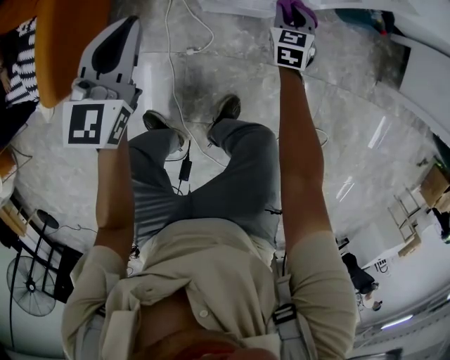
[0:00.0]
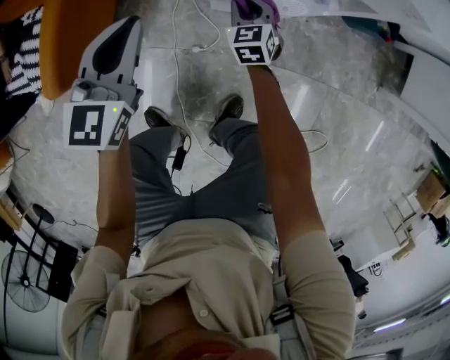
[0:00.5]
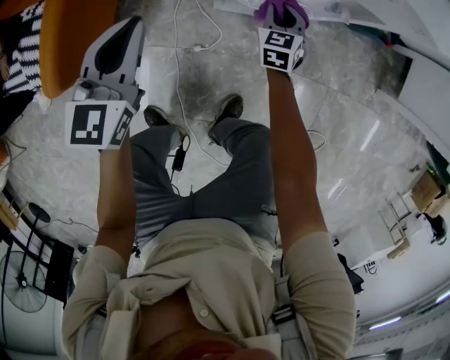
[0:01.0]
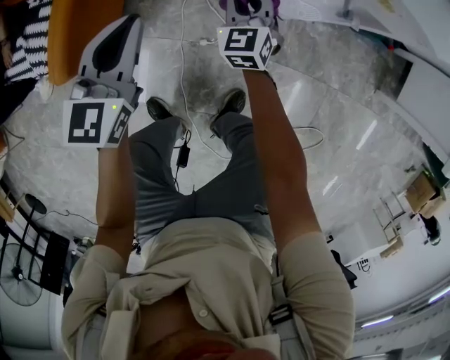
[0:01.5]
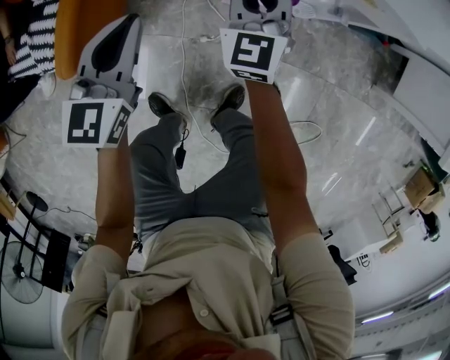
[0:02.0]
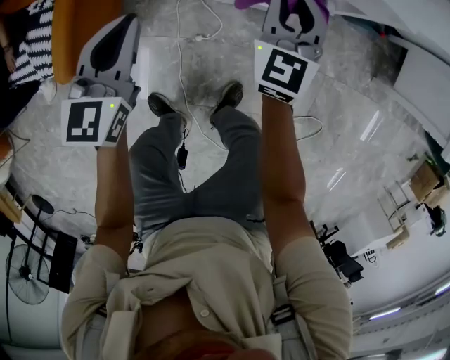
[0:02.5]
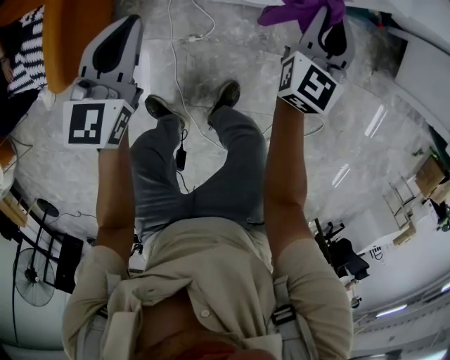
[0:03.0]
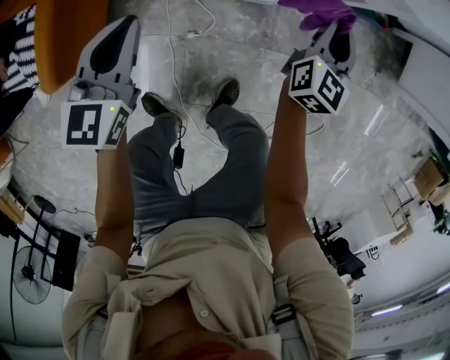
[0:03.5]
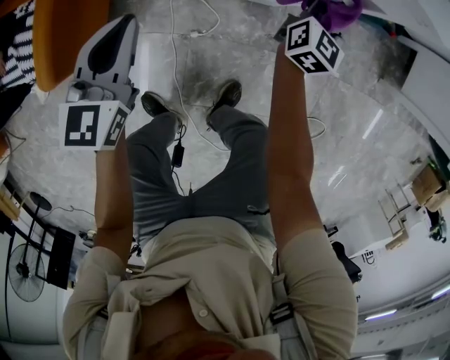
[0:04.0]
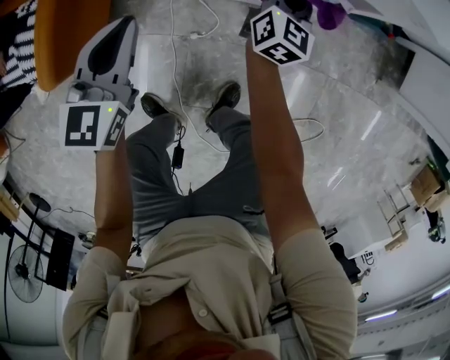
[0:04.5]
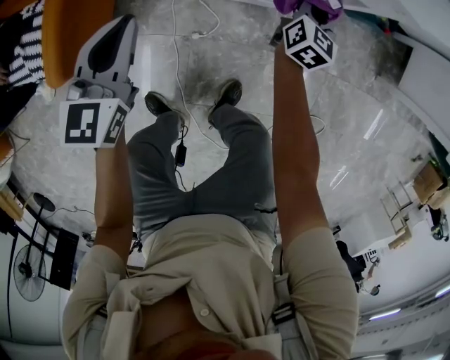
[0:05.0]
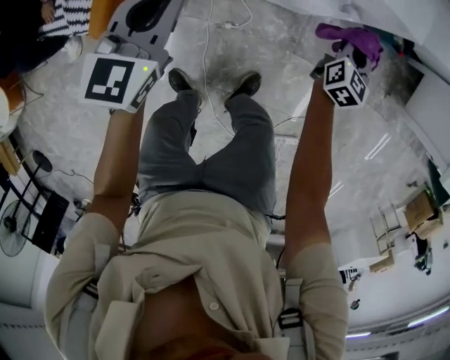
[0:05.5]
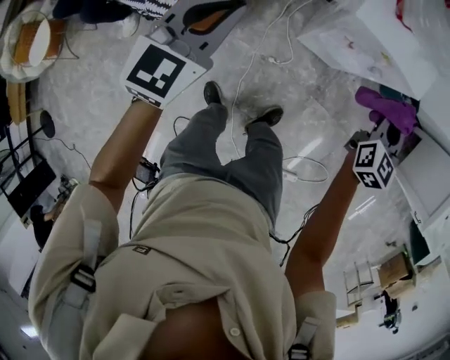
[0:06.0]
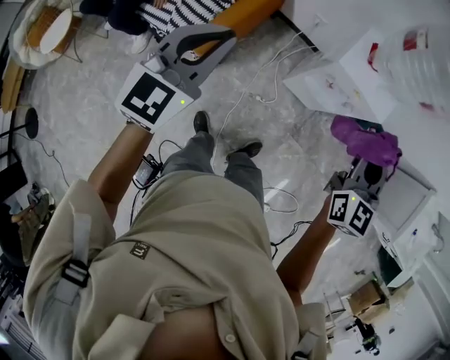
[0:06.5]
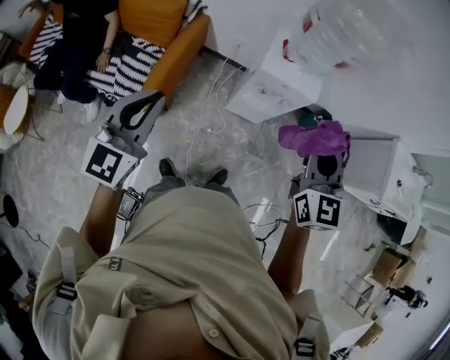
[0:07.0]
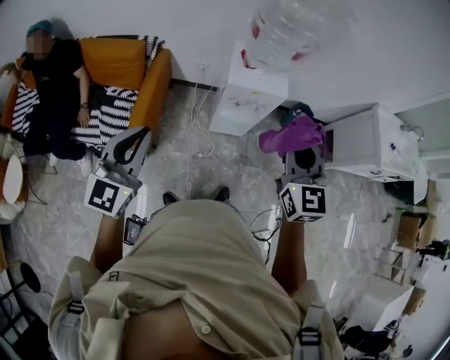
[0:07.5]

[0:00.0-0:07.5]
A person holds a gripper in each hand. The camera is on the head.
0:00.0 to 0:02.0: The left gripper goes about 10 cm to the left, while the right gripper goes left and right, some 25 cm each way, reversing 2 times, and changes its angle by some 30 degrees.
0:02.0 to 0:04.0: The left gripper heads downward and to the right, covering approximately 10 cm, while the right gripper goes roughly 25 cm to the right and downward, and rotates about 40 degrees.
0:04.0 to 0:05.5: The left gripper goes some 15 cm upward, while the right gripper shifts some 10 cm upward and backward, and travels to the left and back again, roughly 10 cm each way.
0:05.5 to 0:07.5: The two grippers go about 50 cm upward and backward. The right gripper rotates roughly 30 degrees.

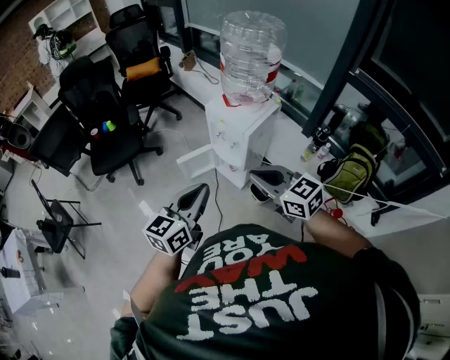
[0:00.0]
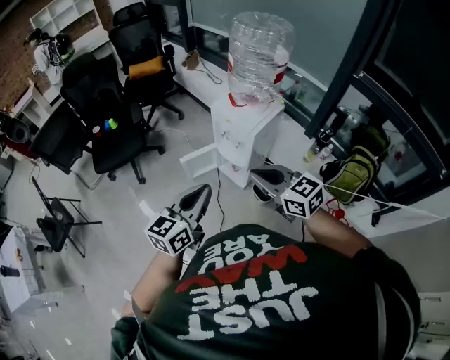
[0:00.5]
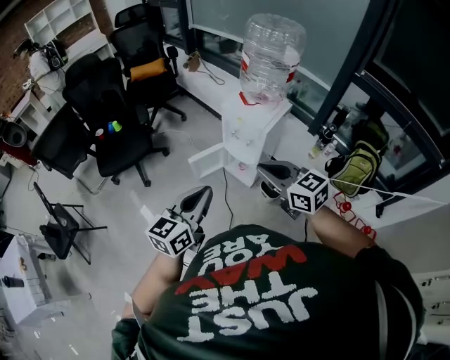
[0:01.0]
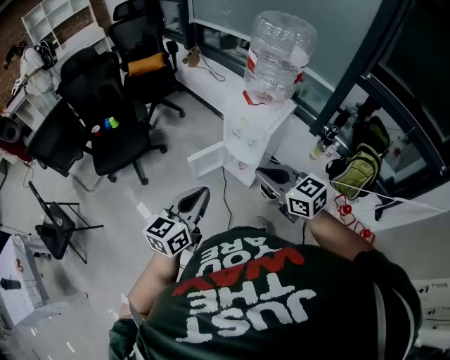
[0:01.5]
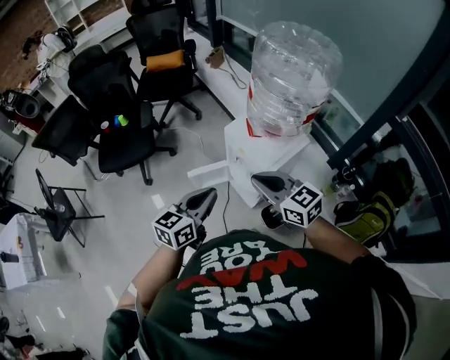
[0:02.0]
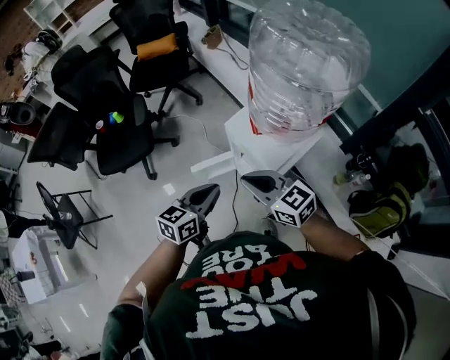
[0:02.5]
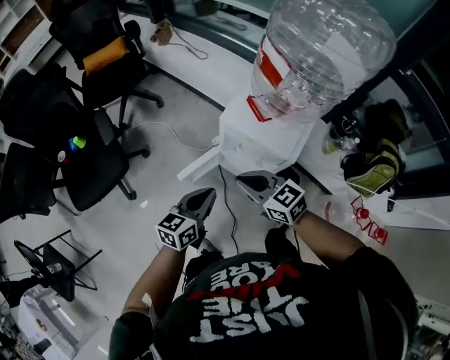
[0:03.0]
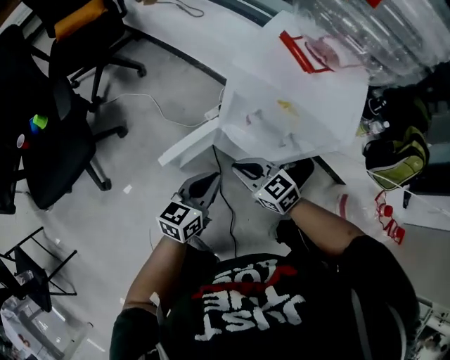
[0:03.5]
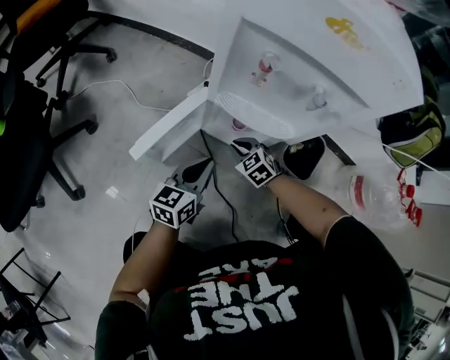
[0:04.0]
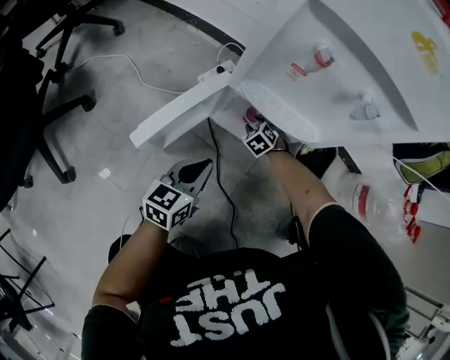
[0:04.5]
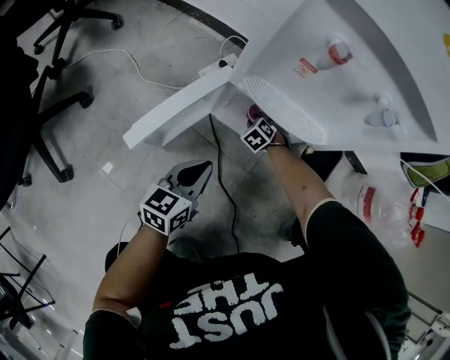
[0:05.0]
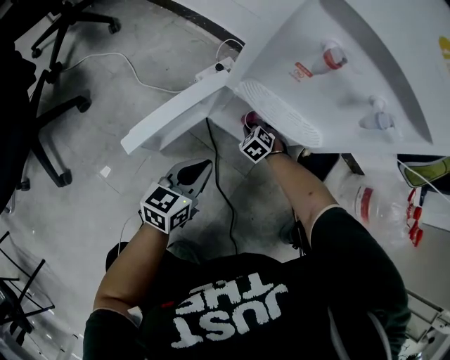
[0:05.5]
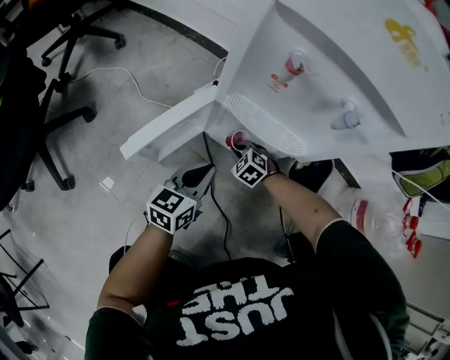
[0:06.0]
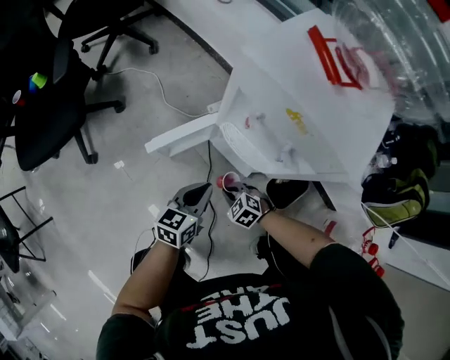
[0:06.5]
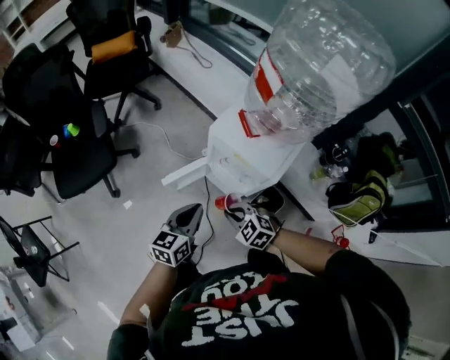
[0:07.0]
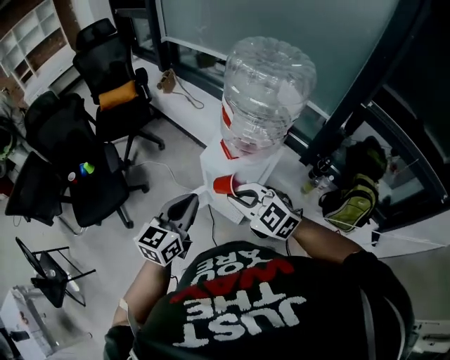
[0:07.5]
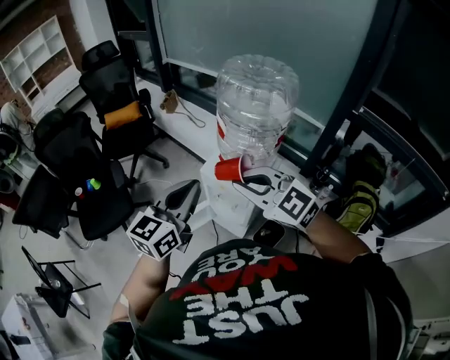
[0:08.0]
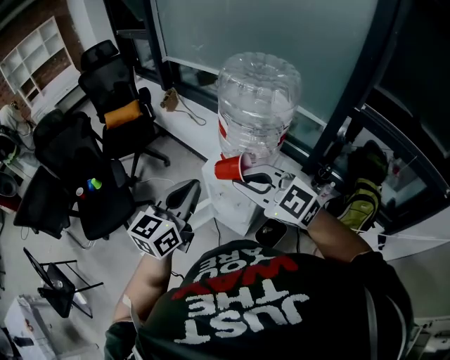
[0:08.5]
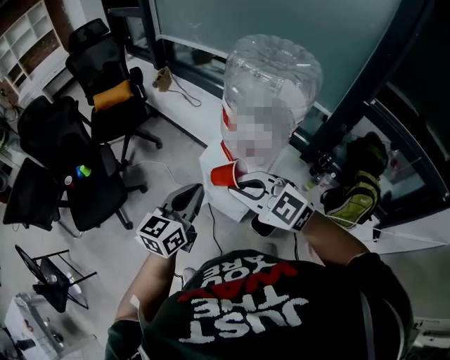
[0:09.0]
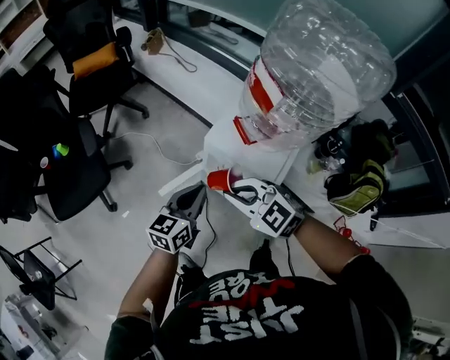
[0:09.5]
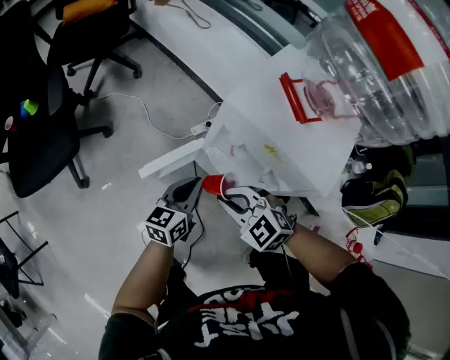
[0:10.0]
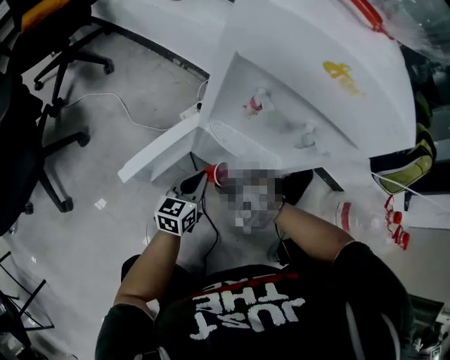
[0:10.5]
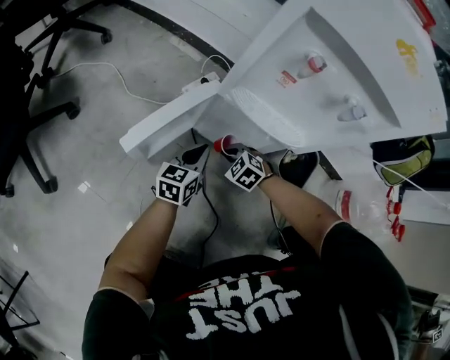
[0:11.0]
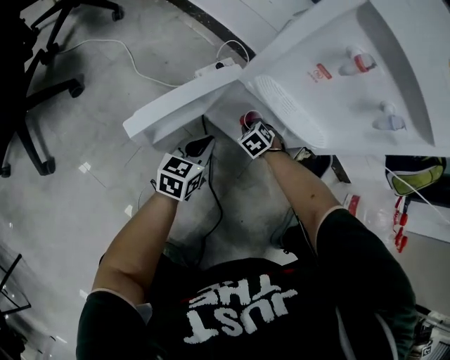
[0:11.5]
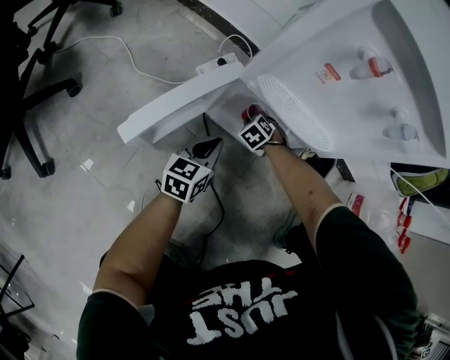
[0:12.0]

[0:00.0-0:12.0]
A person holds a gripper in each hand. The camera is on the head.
0:00.0 to 0:02.0: The grippers both shift forward by roughly 20 cm.
0:02.0 to 0:04.0: Both grippers move downward, about 70 cm. The right gripper tips its fingers downward by some 30 degrees; the left gripper turns by some 30 degrees.
0:04.0 to 0:06.0: The left gripper goes roughly 5 cm downward; the right gripper heads downward, covering roughly 10 cm, and opens, then closes once more.
0:06.0 to 0:08.0: The grippers both shift upward by some 90 cm. The left gripper changes its angle by some 30 degrees. The right gripper tips its fingers upward by approximately 40 degrees.
0:08.0 to 0:10.0: The two grippers go roughly 50 cm downward. The right gripper swivels some 30 degrees; the left gripper changes its angle by roughly 30 degrees.
0:10.0 to 0:12.0: The two grippers go some 40 cm downward. The right gripper rotates some 50 degrees.

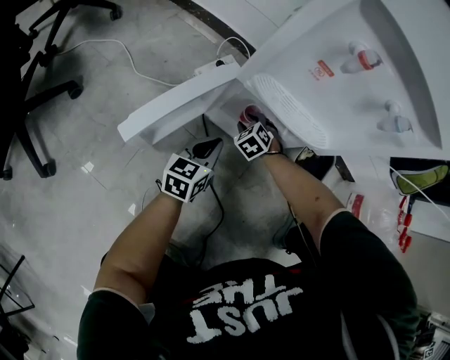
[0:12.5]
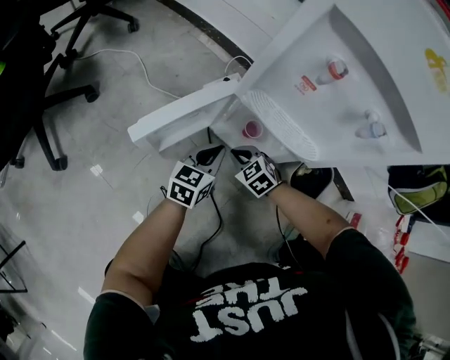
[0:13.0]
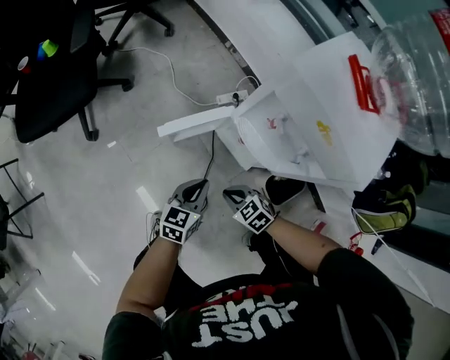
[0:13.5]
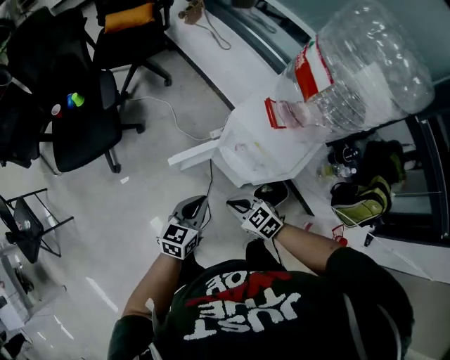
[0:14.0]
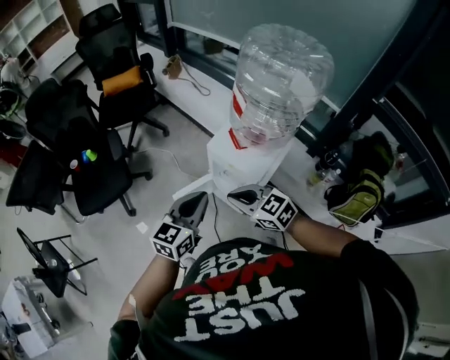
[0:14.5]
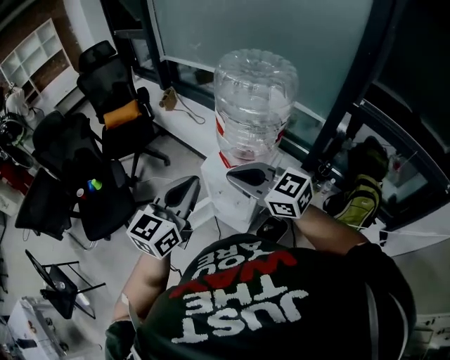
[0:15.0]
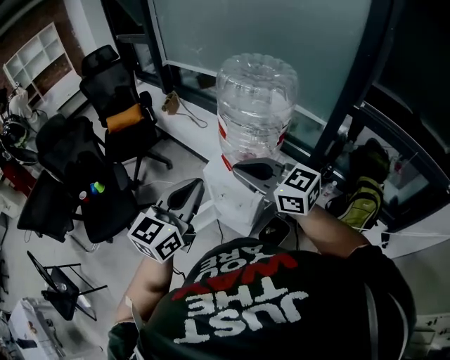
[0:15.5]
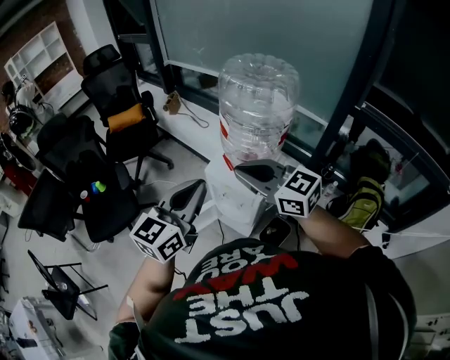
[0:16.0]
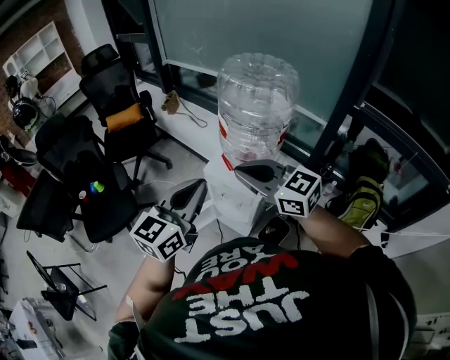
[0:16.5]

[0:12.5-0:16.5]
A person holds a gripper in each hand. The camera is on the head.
0:12.5 to 0:14.5: Both grippers travel together upward, approximately 80 cm. The right gripper tips its fingers upward by about 30 degrees, and closes up; the left gripper turns by roughly 20 degrees.
0:14.5 to 0:16.5: The grippers both shift upward by roughly 20 cm. The right gripper changes its angle by about 20 degrees.

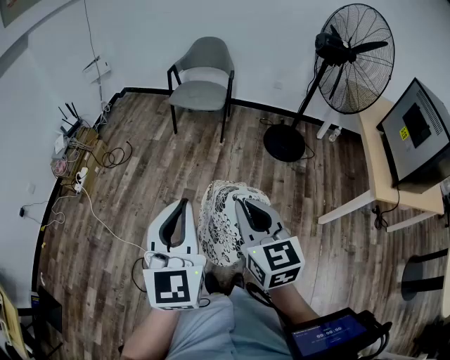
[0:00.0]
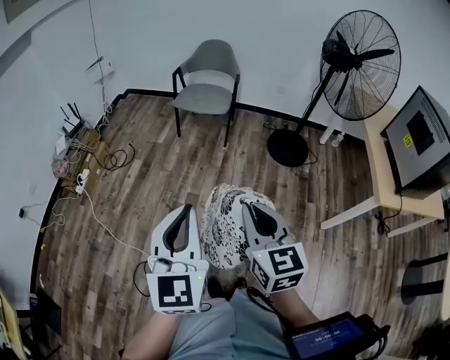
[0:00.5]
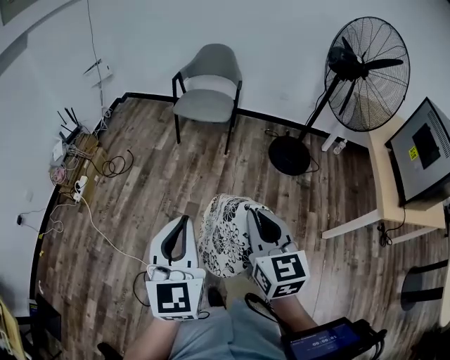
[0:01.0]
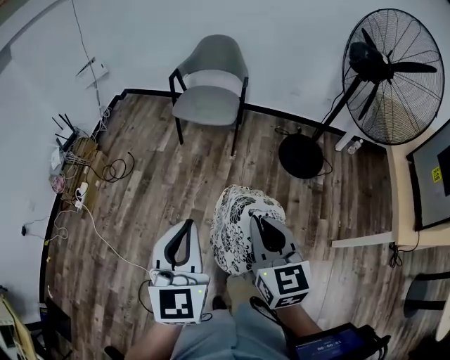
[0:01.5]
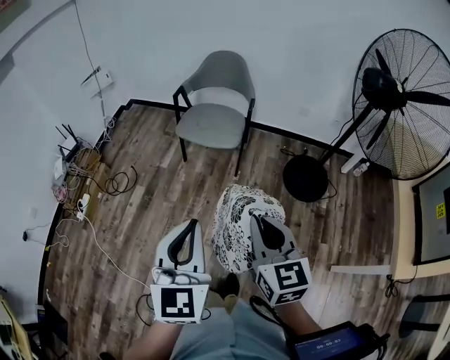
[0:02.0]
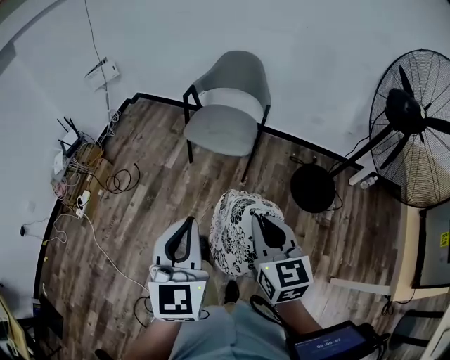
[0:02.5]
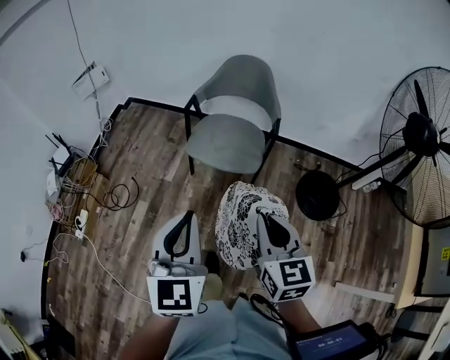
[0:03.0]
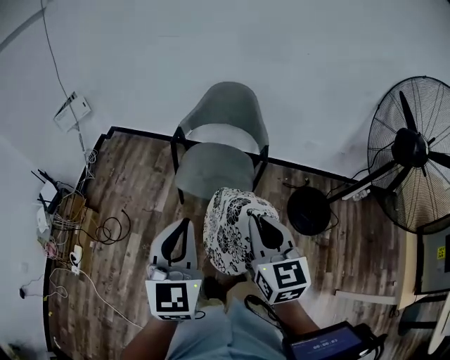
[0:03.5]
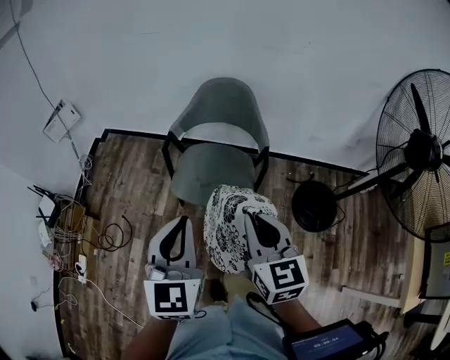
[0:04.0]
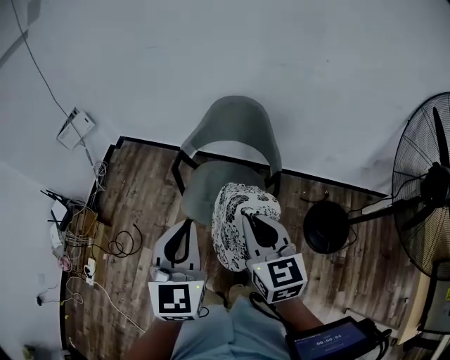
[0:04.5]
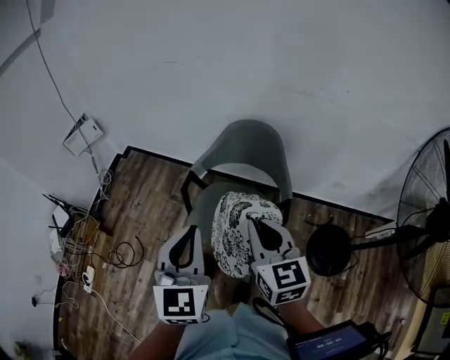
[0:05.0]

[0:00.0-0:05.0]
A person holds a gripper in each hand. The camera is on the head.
0:00.0 to 0:02.5: The two grippers travel together, forward, approximately 40 cm.
0:02.5 to 0:05.0: The pair of grippers is taken forward, about 50 cm.
